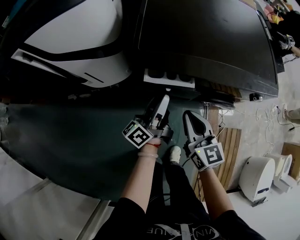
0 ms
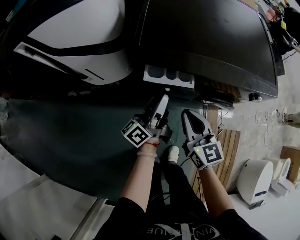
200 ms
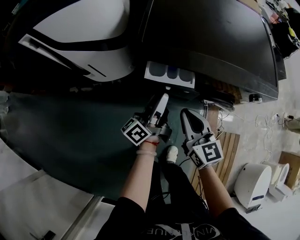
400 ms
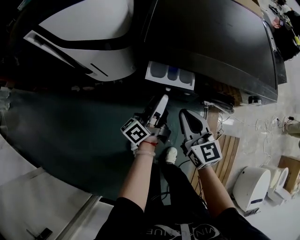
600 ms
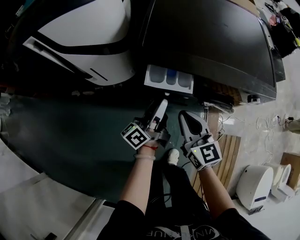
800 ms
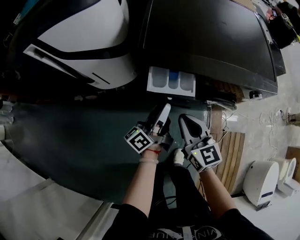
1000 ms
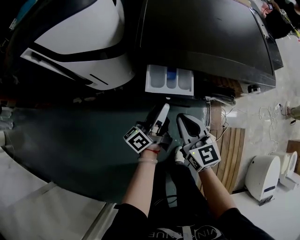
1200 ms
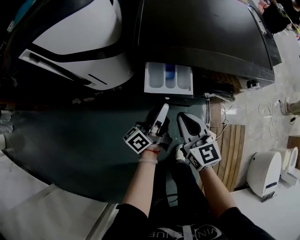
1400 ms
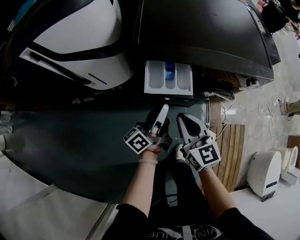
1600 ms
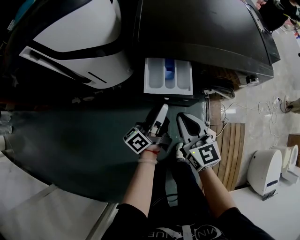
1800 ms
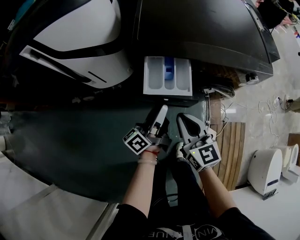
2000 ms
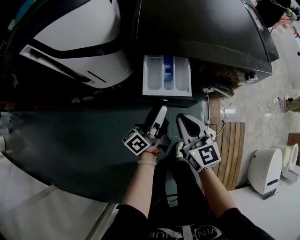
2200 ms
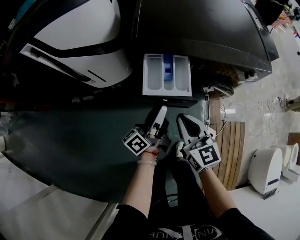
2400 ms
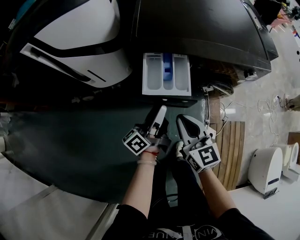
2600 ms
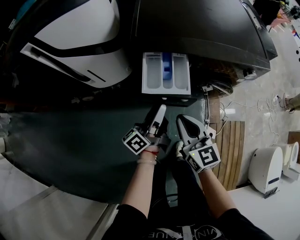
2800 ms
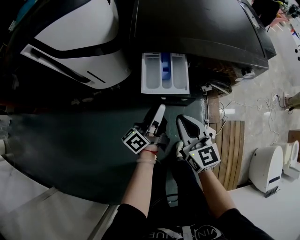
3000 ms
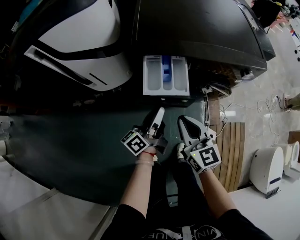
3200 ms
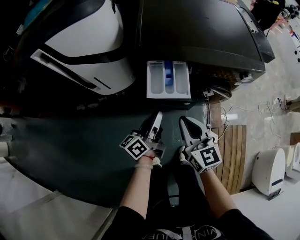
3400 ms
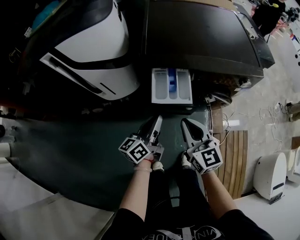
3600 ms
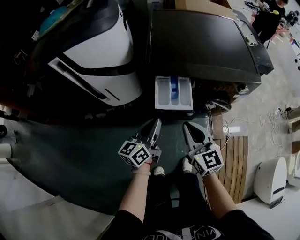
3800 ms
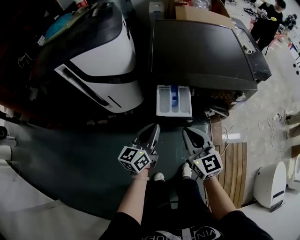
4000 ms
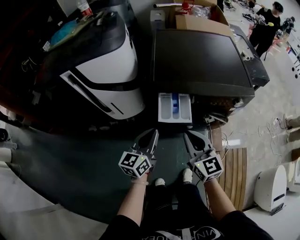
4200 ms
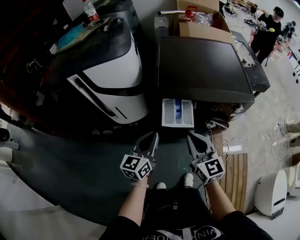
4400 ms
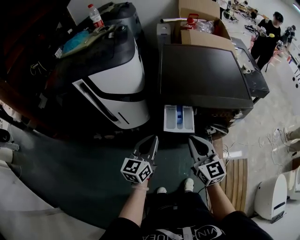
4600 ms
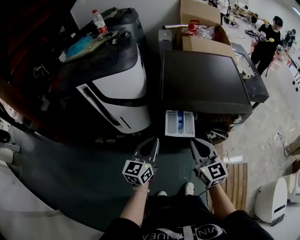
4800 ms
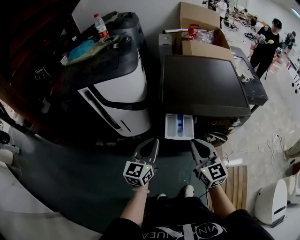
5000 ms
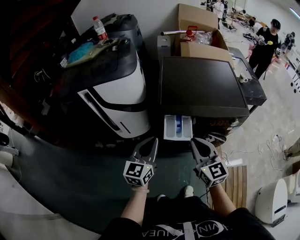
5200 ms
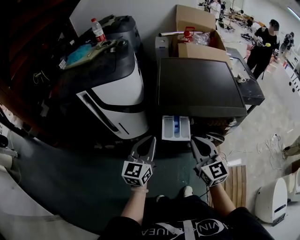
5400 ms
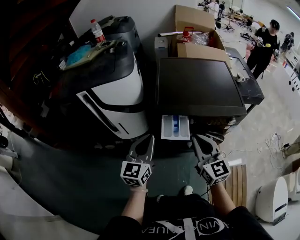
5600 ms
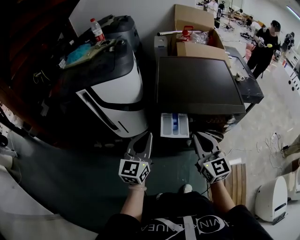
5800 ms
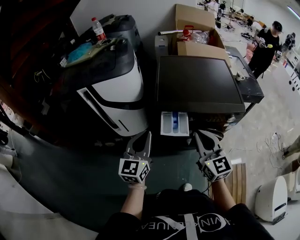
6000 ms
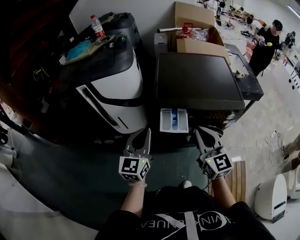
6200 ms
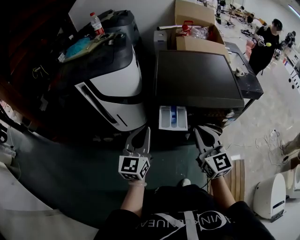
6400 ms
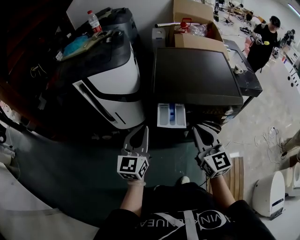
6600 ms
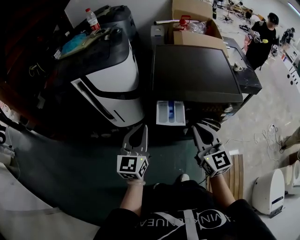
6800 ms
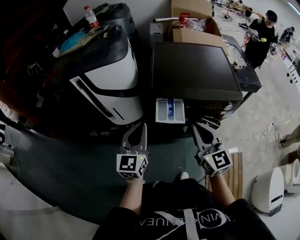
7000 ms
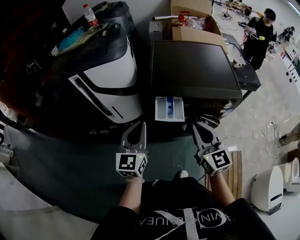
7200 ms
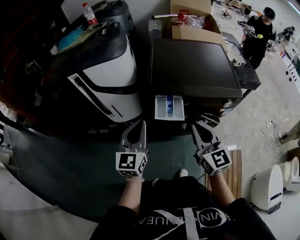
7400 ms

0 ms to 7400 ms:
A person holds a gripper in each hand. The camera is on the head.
0 ms to 1400 ms: The left gripper shifts approximately 5 cm backward. The right gripper moves about 5 cm.
1400 ms to 3000 ms: The right gripper moves backward, some 5 cm.
3000 ms to 4400 ms: The right gripper goes some 15 cm upward; the left gripper is displaced upward and to the left by roughly 15 cm, rolls clockwise, seen from behind, by approximately 50 degrees, and closes.
4400 ms to 6000 ms: The grippers both shift upward by about 10 cm.
6000 ms to 7400 ms: The grippers move only a little.

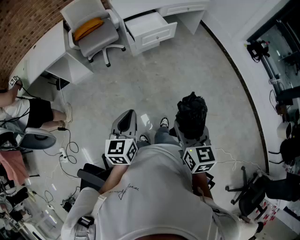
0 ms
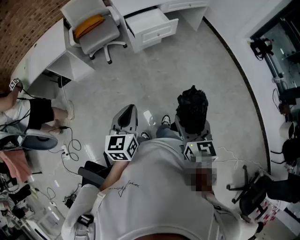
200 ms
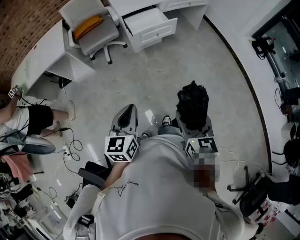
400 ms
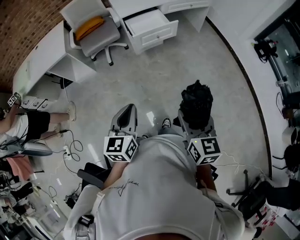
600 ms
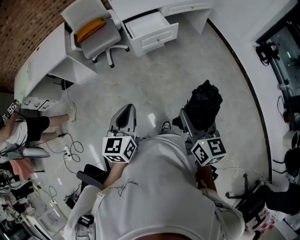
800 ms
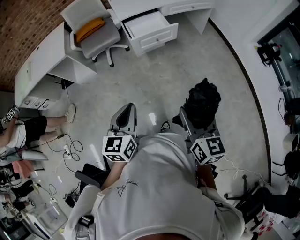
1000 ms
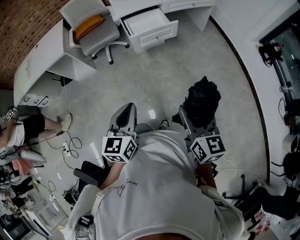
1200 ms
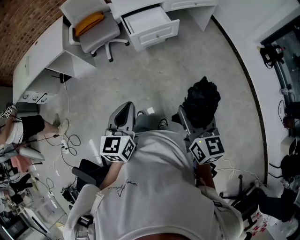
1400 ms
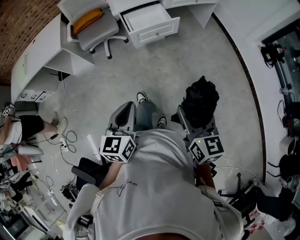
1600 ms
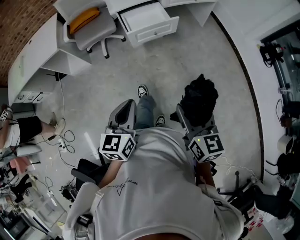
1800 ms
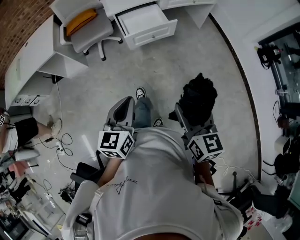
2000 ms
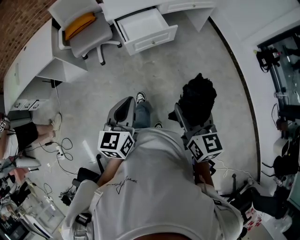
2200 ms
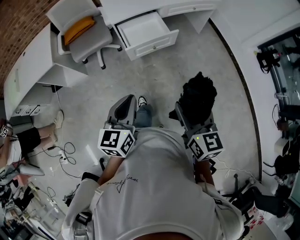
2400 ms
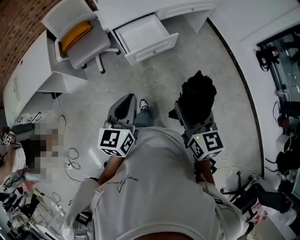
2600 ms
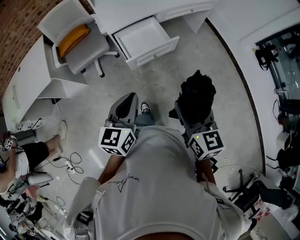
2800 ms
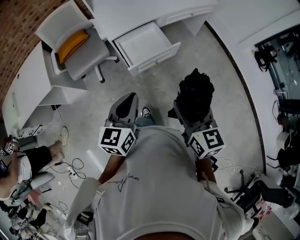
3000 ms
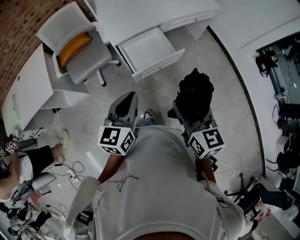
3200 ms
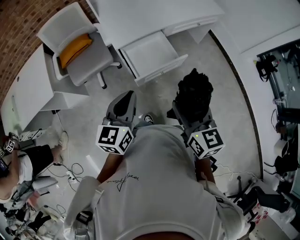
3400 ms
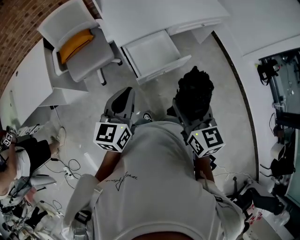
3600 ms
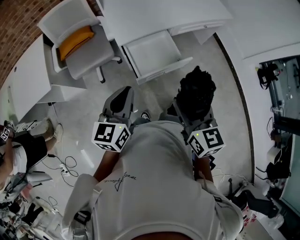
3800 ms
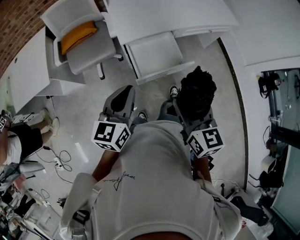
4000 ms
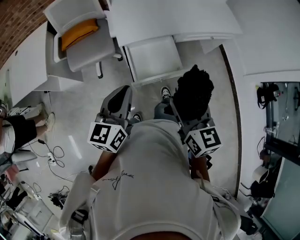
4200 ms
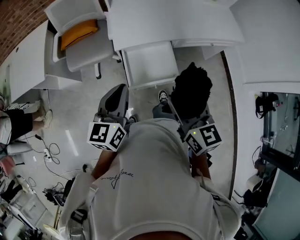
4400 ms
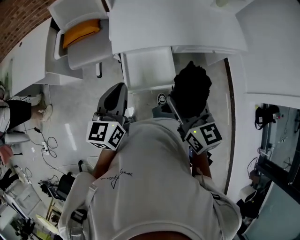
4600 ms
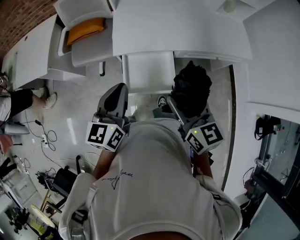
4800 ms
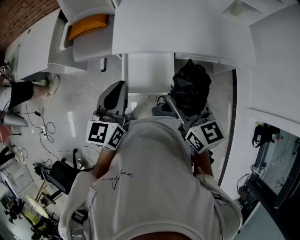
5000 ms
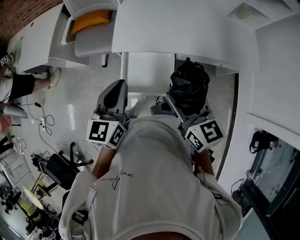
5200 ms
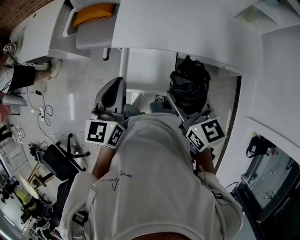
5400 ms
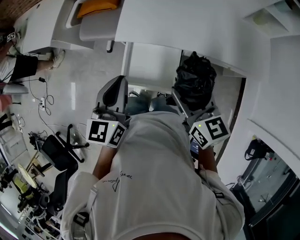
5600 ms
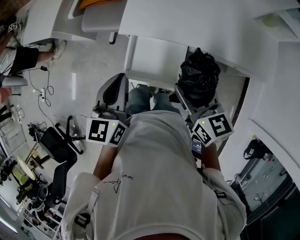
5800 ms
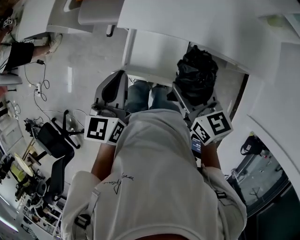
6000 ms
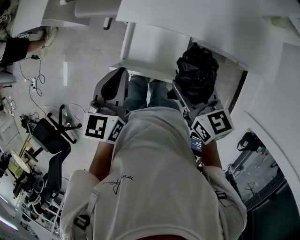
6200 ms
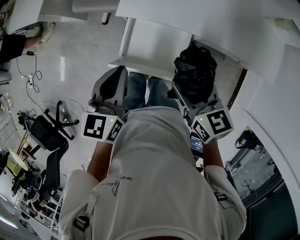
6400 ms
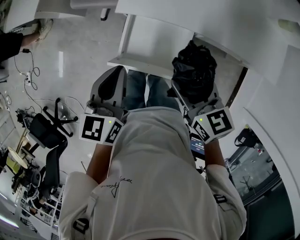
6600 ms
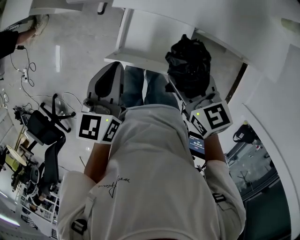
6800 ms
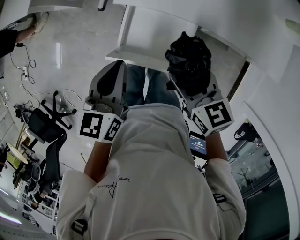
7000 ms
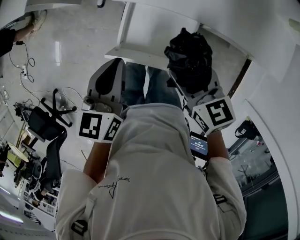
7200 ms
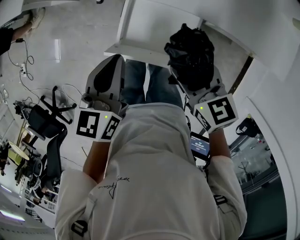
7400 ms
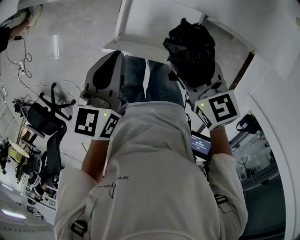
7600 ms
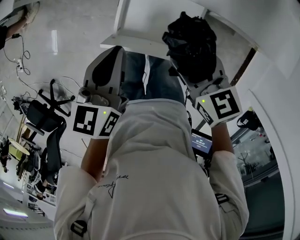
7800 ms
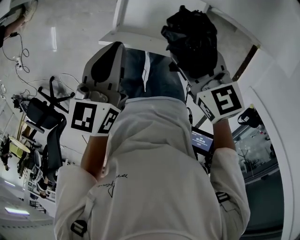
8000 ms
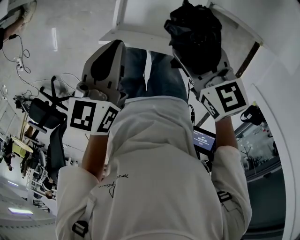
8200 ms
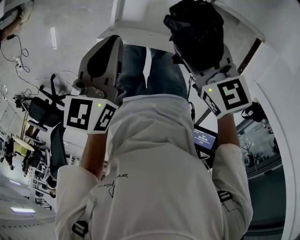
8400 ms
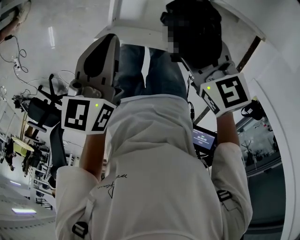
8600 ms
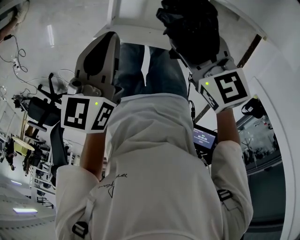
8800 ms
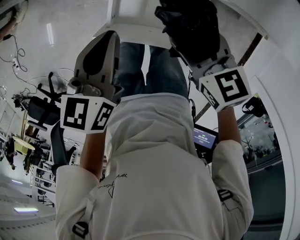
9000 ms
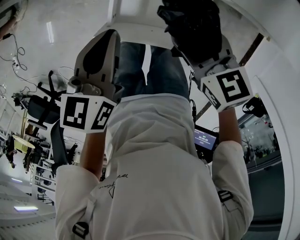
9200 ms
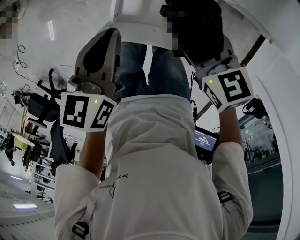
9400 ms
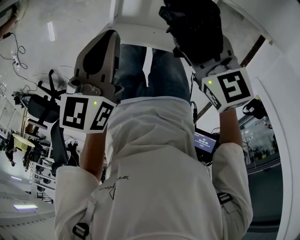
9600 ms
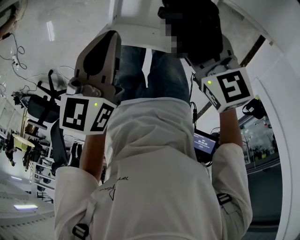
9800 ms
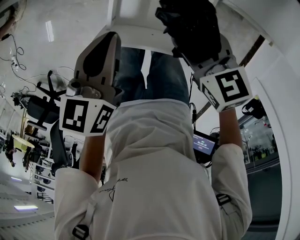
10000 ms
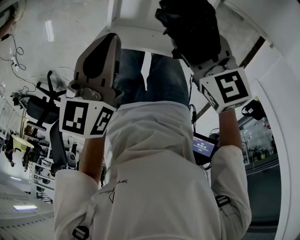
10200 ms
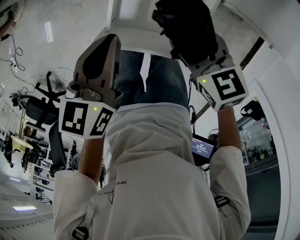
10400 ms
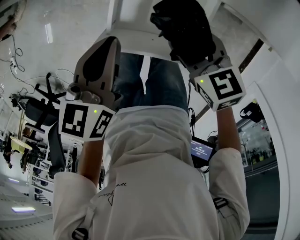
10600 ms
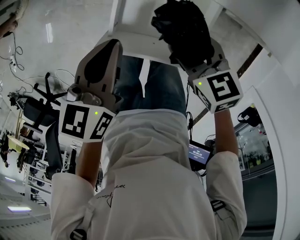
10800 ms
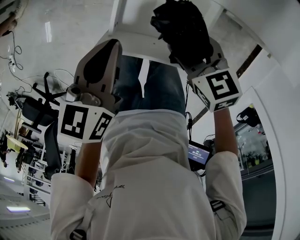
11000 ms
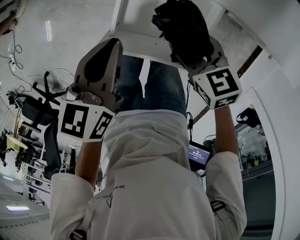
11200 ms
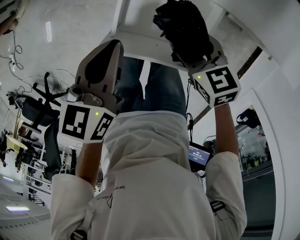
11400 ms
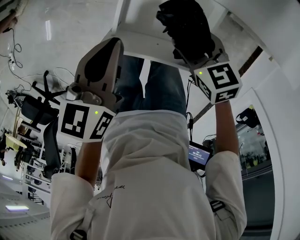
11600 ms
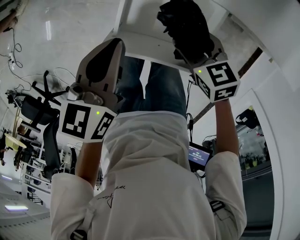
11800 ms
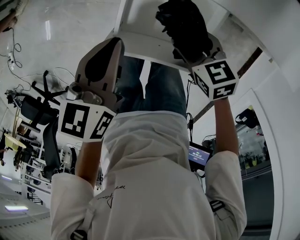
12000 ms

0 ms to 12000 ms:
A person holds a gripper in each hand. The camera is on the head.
0 ms to 1600 ms: Both grippers travel together forward and to the right, about 15 cm.
1600 ms to 3000 ms: The grippers both shift forward by roughly 25 cm.
3000 ms to 4400 ms: The two grippers go some 20 cm forward. The left gripper changes its angle by some 20 degrees.
4400 ms to 6000 ms: The left gripper shifts by about 10 cm, and rotates roughly 30 degrees. Meanwhile the right gripper moves some 20 cm, and turns by about 30 degrees.
6000 ms to 7600 ms: Both grippers travel together downward, some 10 cm.
7600 ms to 9000 ms: The left gripper shifts by about 5 cm. Meanwhile the right gripper goes roughly 5 cm downward.
9000 ms to 10400 ms: There are only small adjustments of the grippers.
10400 ms to 12000 ms: The right gripper heads downward, covering roughly 5 cm.

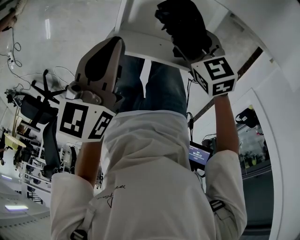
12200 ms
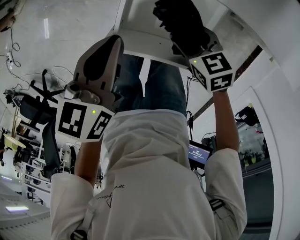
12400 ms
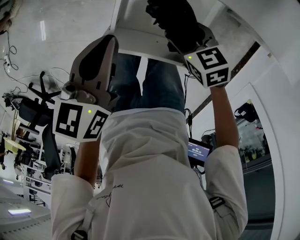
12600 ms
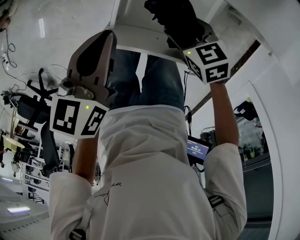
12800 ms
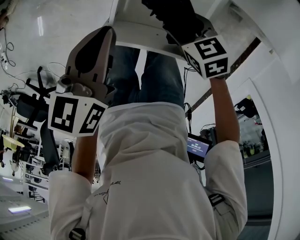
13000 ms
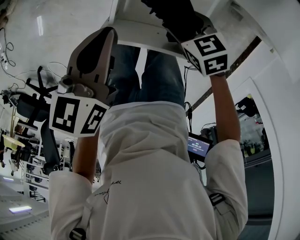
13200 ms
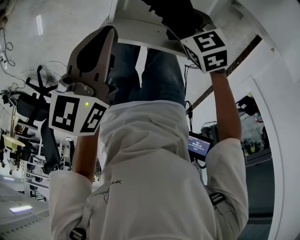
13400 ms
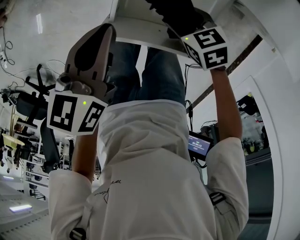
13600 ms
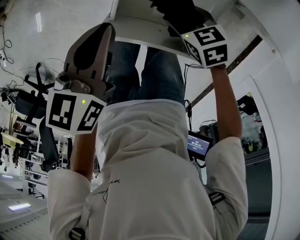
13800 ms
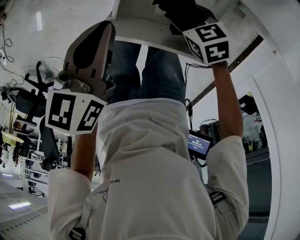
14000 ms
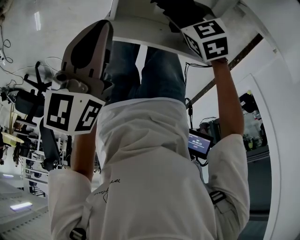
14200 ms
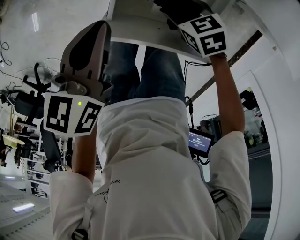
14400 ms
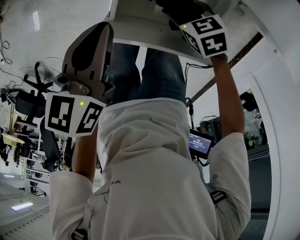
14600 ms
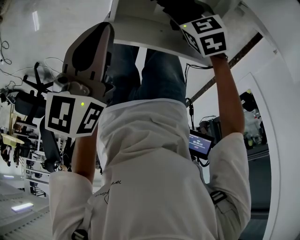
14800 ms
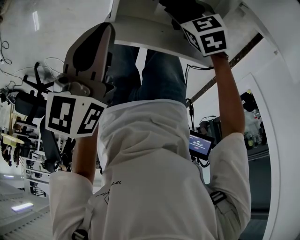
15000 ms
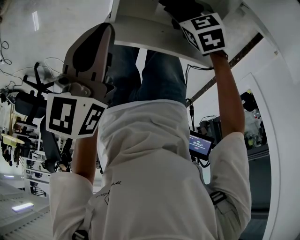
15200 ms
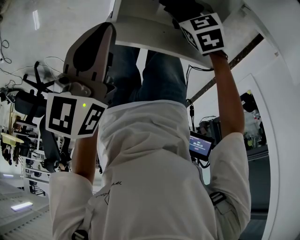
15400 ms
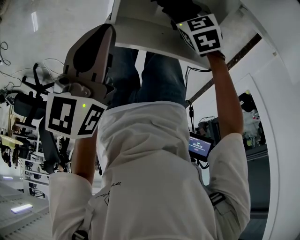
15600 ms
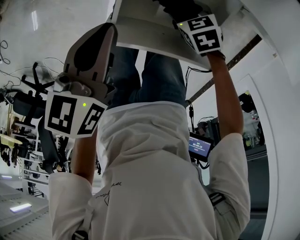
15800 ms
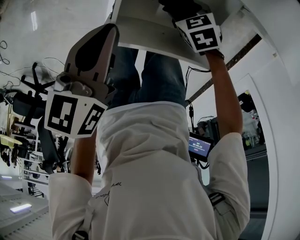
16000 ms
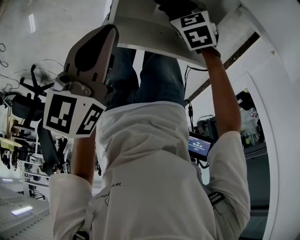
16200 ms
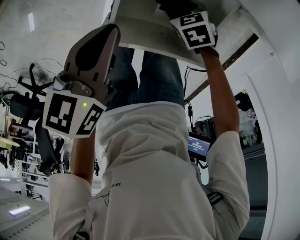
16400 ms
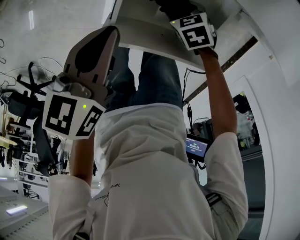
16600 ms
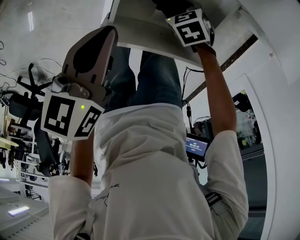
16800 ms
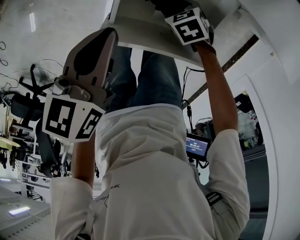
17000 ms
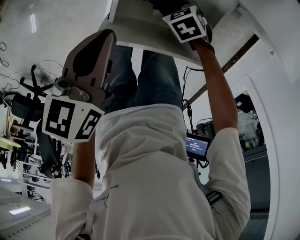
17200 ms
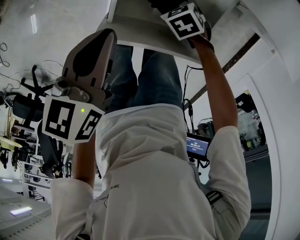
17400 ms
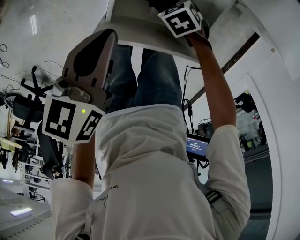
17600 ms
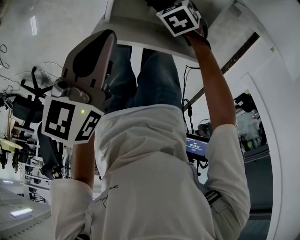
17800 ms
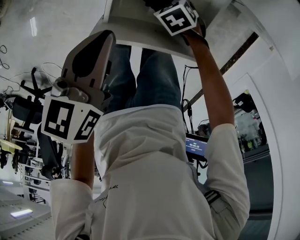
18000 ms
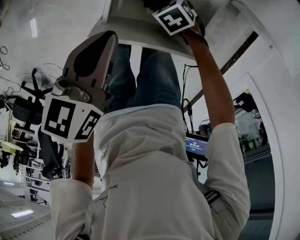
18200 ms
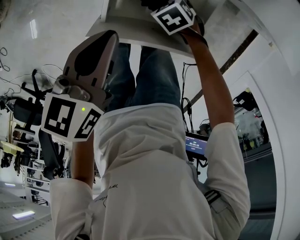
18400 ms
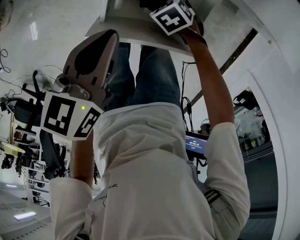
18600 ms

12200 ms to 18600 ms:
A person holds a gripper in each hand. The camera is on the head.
12200 ms to 13800 ms: The right gripper ends up approximately 5 cm from where it was.
13800 ms to 15400 ms: The right gripper travels downward by some 5 cm.
15400 ms to 18600 ms: The grippers make only small movements.
